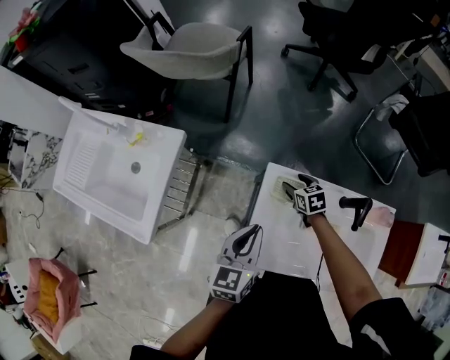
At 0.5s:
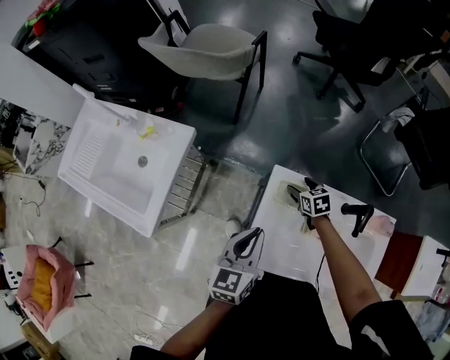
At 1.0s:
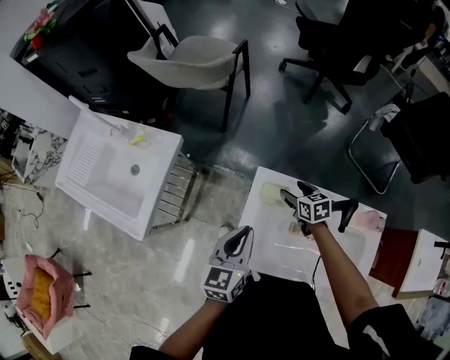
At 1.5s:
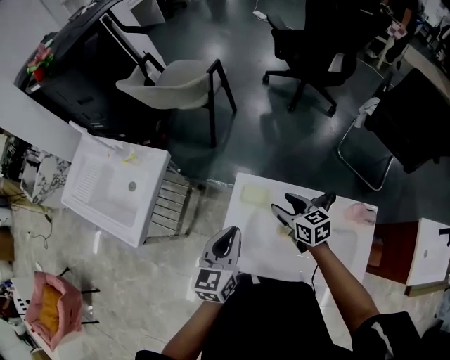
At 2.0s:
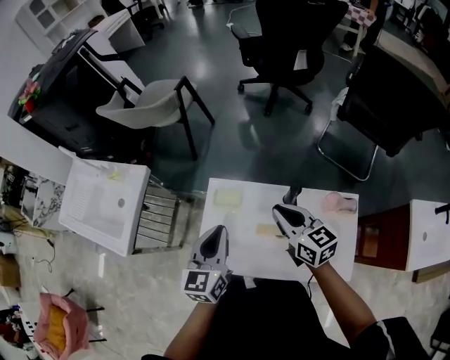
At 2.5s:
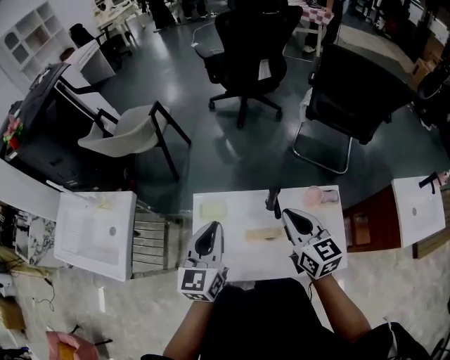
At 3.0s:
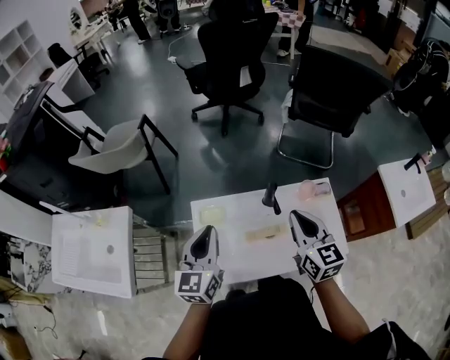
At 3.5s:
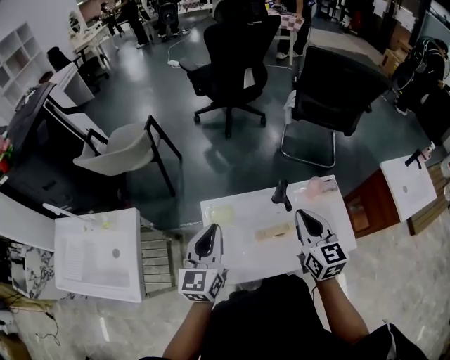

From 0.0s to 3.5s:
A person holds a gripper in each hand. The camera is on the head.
From 0.0s to 2.0s: The left gripper travels to the right, upward and backward by approximately 20 cm, while the right gripper shifts approximately 35 cm upward, backward and to the right, angles its fingers upward, by about 40 degrees, and closes.
From 2.0s to 3.5s: The left gripper changes place by some 10 cm. Meanwhile the right gripper shifts by approximately 10 cm, and rotates some 40 degrees.

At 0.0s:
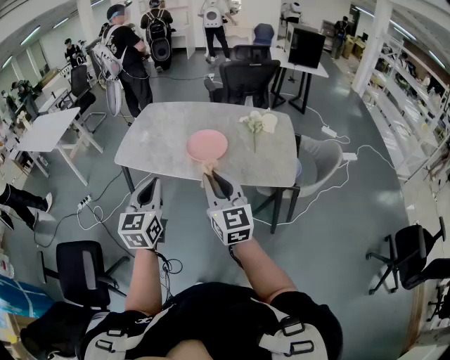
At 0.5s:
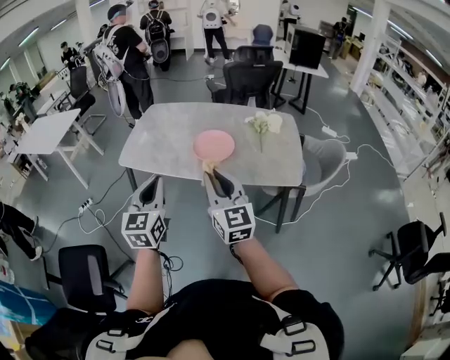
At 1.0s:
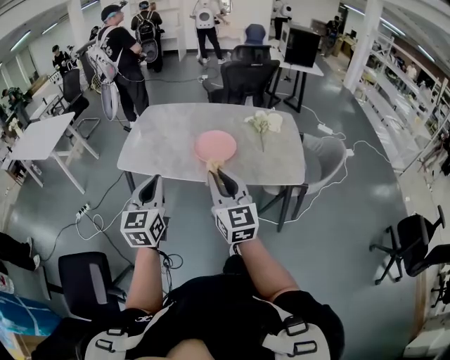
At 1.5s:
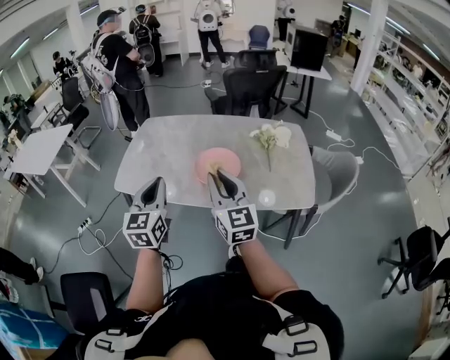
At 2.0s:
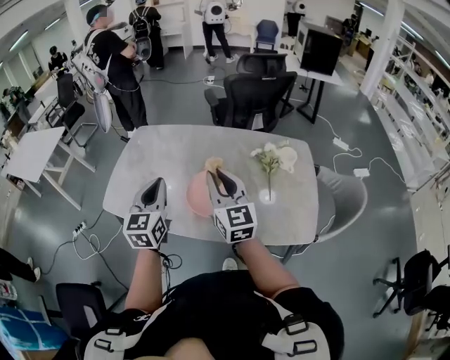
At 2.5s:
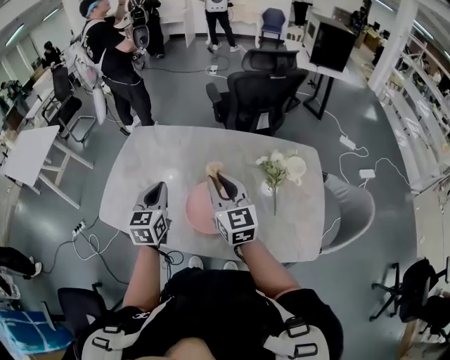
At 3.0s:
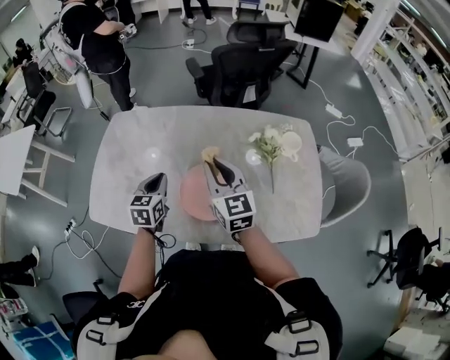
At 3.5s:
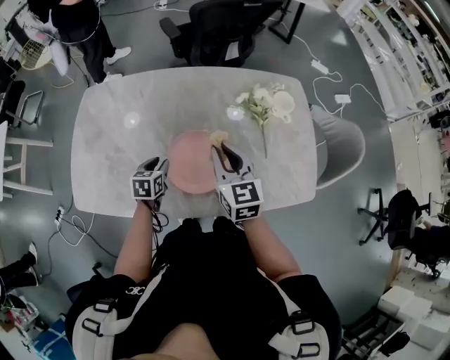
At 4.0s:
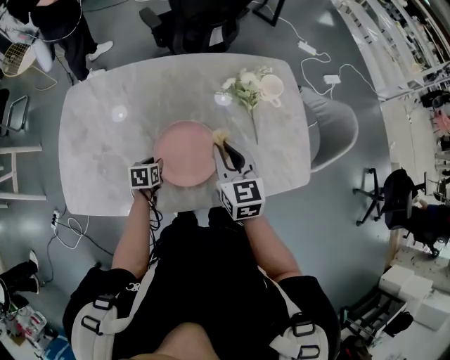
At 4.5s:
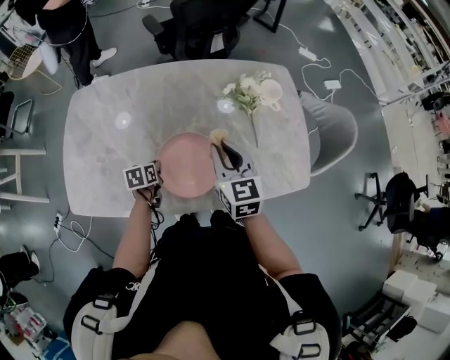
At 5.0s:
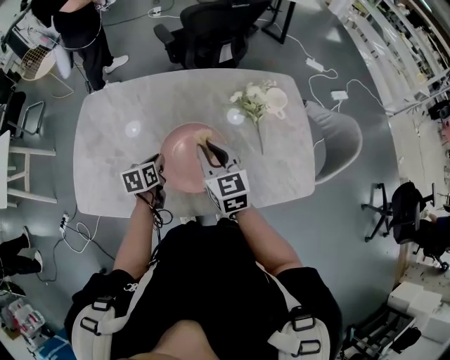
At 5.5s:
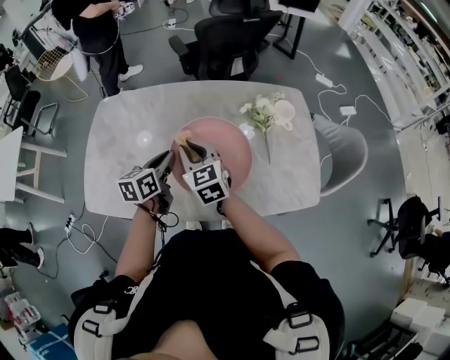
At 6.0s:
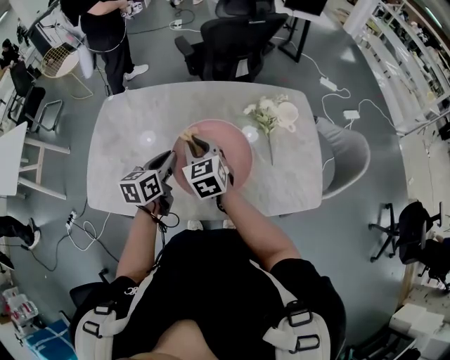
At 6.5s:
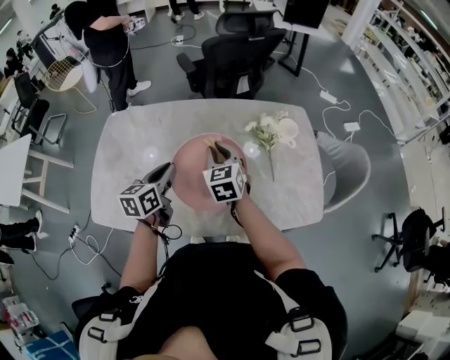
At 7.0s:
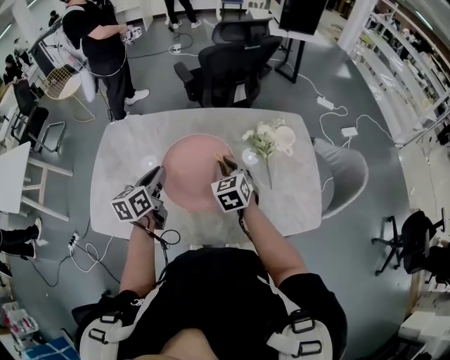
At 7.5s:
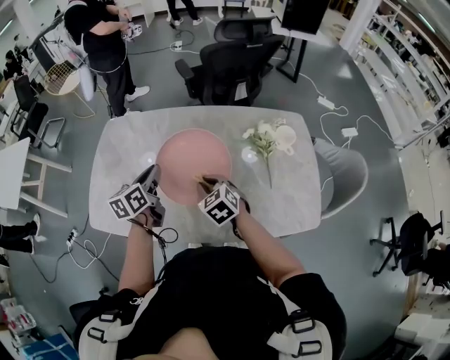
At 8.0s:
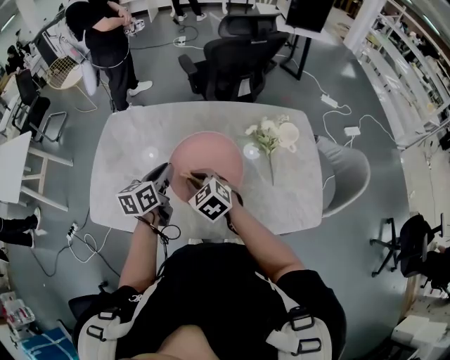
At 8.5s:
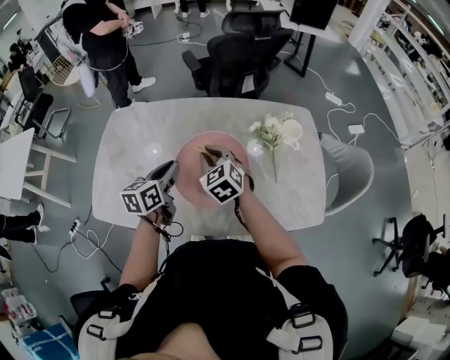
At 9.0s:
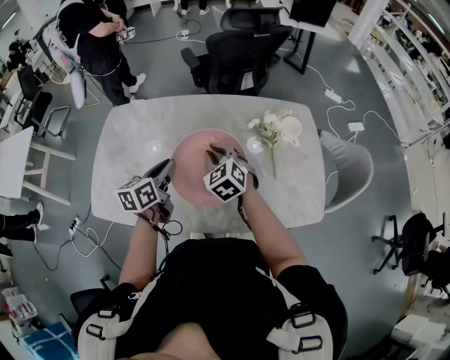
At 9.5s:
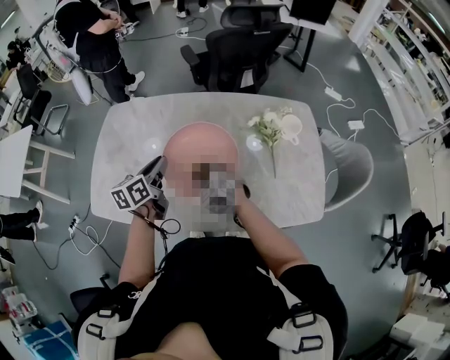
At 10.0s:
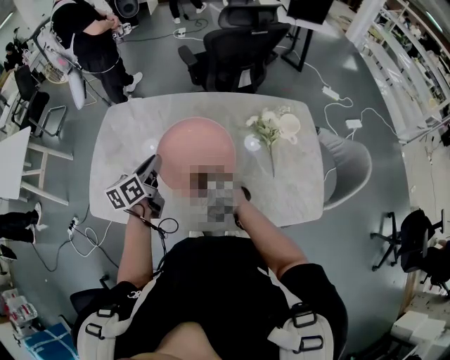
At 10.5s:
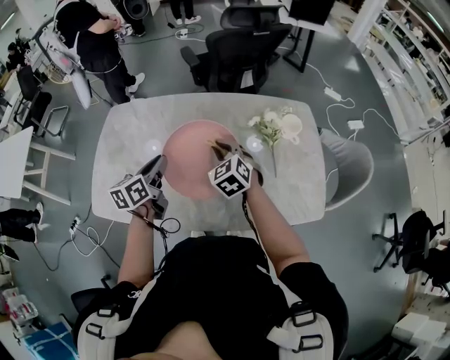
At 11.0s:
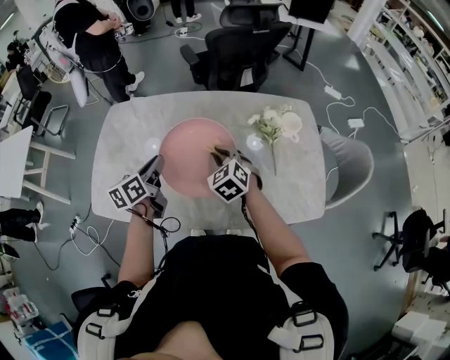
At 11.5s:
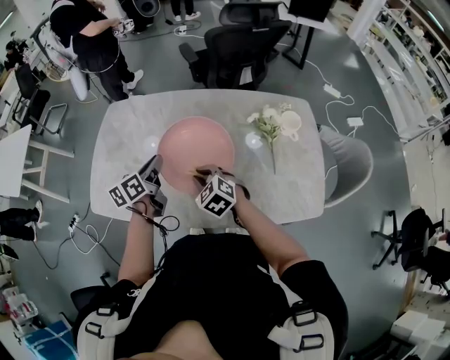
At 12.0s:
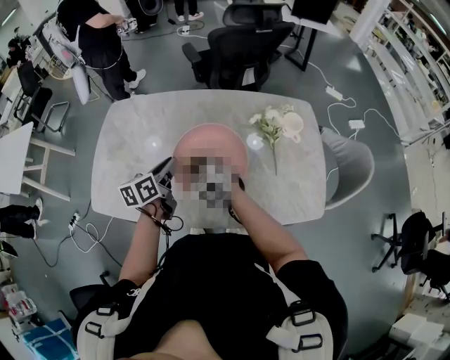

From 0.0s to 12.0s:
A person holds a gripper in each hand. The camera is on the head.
From 0.0s to 2.0s: Both grippers move forward, roughly 30 cm.
From 2.0s to 4.0s: The right gripper is displaced downward by approximately 15 cm, and rotates some 30 degrees. Meanwhile the left gripper heads downward, covering some 35 cm, tips its fingers downward by about 50 degrees, and opens its fingers.
From 4.0s to 6.0s: The right gripper shifts roughly 15 cm to the left. The left gripper moves upward, roughly 25 cm, tilts its fingers about 30 degrees upward, and closes up.
From 6.0s to 8.0s: The right gripper moves downward, some 5 cm, reaches approximately 10 cm to the right, then returns, and rotates approximately 20 degrees.
From 8.0s to 10.0s: The right gripper travels forward and back again, about 5 cm each way.
From 10.0s to 12.0s: The left gripper shifts by about 5 cm. The right gripper travels to the right and back again, some 10 cm each way.

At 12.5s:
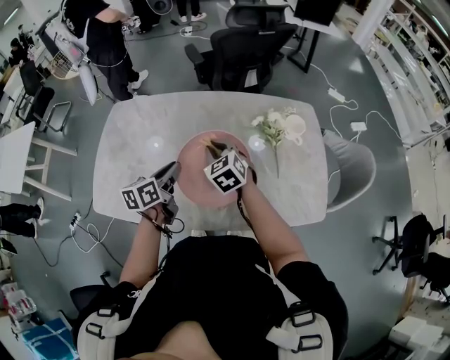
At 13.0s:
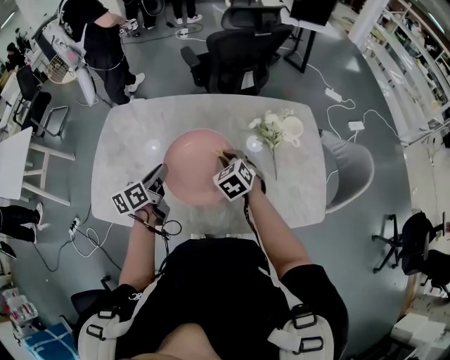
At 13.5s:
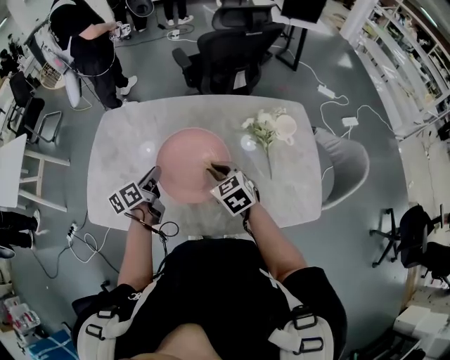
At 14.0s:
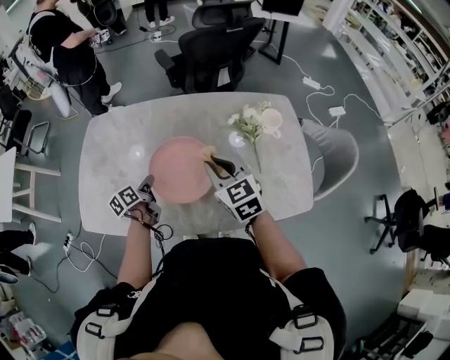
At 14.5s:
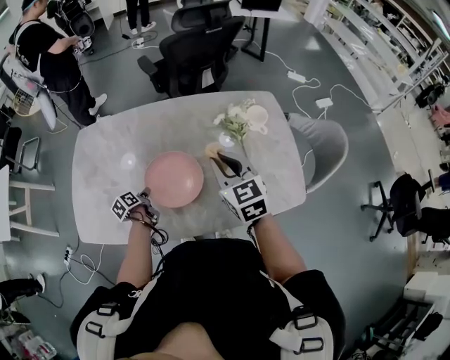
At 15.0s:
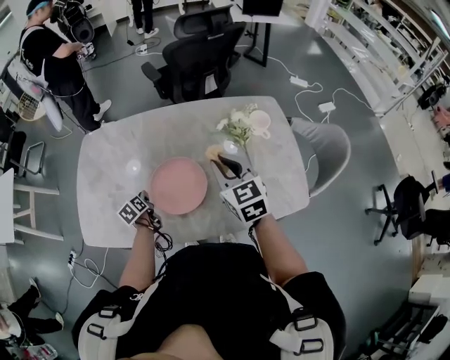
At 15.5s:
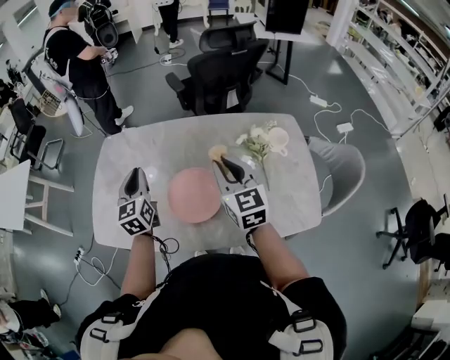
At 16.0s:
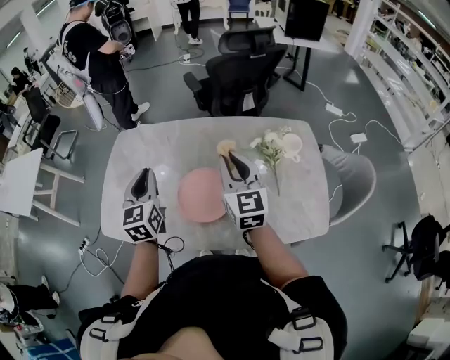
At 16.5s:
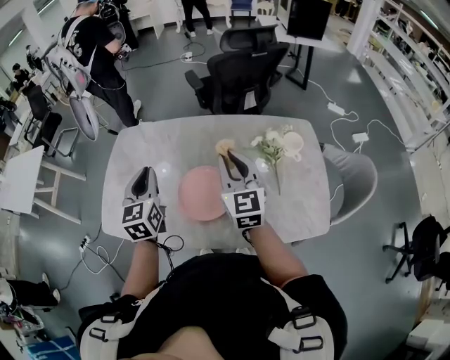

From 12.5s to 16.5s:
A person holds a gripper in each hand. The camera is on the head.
From 12.5s to 14.5s: The right gripper heads to the right, upward and backward, covering roughly 15 cm, and turns by roughly 20 degrees. The left gripper goes some 20 cm downward, and rotates approximately 30 degrees.
From 14.5s to 16.5s: The left gripper is displaced upward by some 35 cm, and twists roughly 50 degrees clockwise, seen from behind. The right gripper moves upward and to the left, about 10 cm.

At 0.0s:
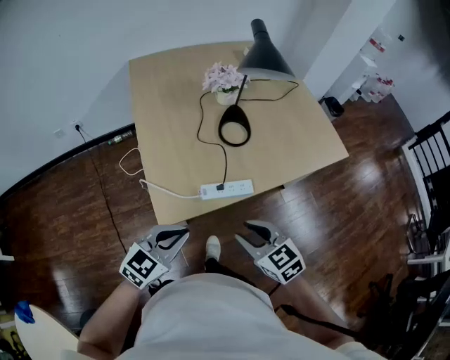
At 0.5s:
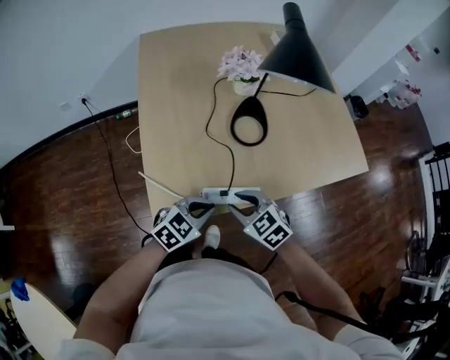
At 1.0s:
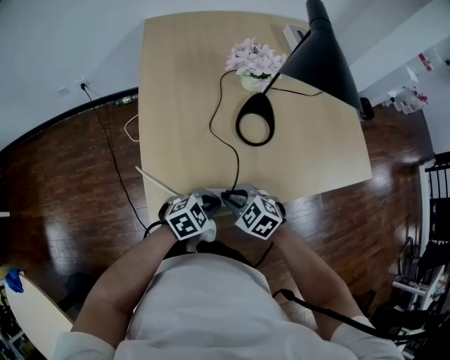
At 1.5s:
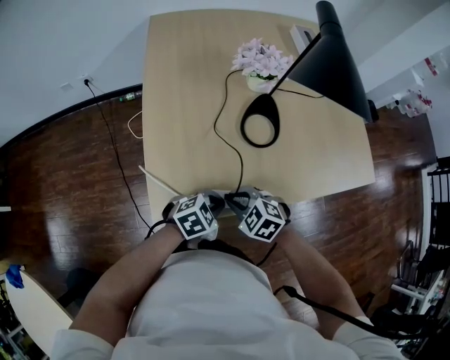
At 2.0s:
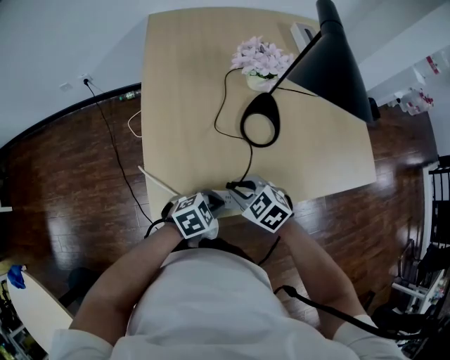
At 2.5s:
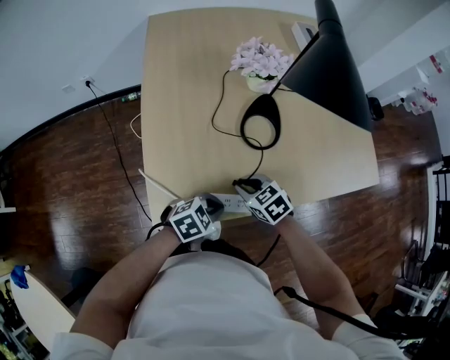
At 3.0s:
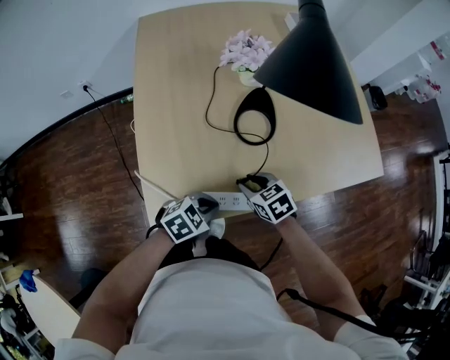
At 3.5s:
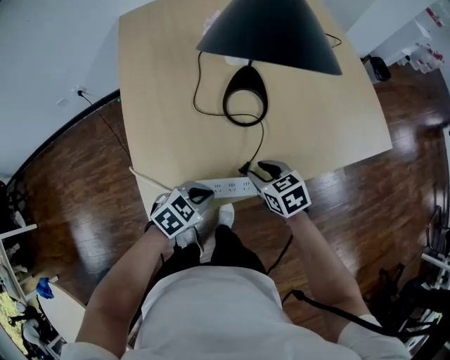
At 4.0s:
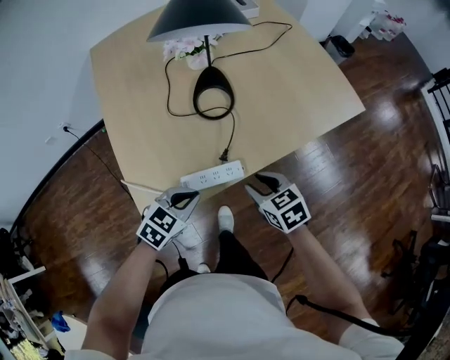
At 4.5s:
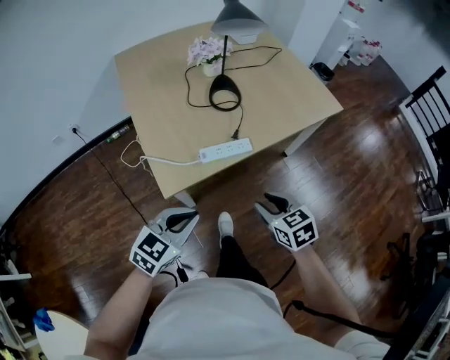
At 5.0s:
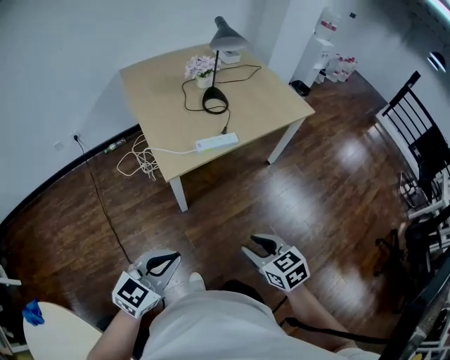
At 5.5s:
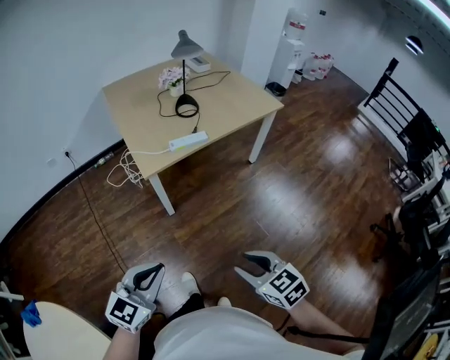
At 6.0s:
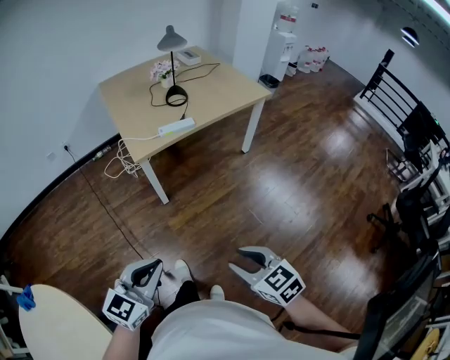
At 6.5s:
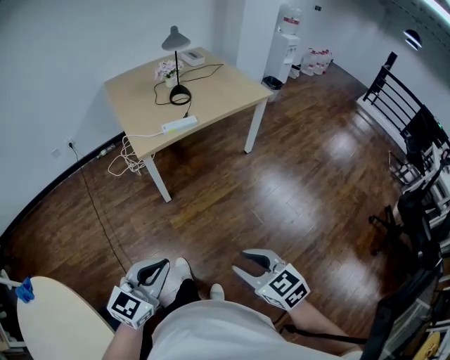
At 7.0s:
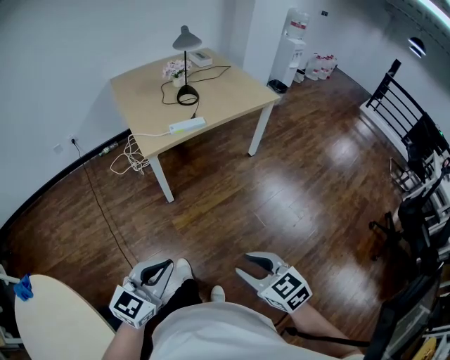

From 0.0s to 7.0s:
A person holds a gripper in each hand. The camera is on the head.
From 0.0s to 2.0s: The left gripper shifts by some 25 cm, and swivels roughly 30 degrees. The right gripper ends up approximately 25 cm from where it was, and rotates some 30 degrees.
From 2.0s to 3.5s: The right gripper changes place by some 10 cm, swivels roughly 40 degrees, and opens its fingers.
From 3.5s to 5.0s: The two grippers travel together, backward, roughly 50 cm. The left gripper moves upward, approximately 20 cm, and swivels approximately 30 degrees.
From 5.0s to 7.0s: The left gripper heads backward and to the right, covering about 25 cm. The right gripper is displaced backward by some 25 cm.
